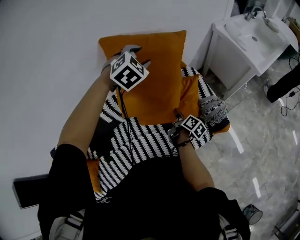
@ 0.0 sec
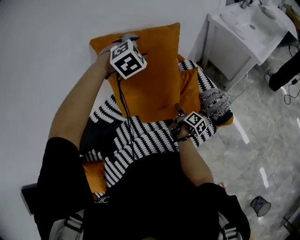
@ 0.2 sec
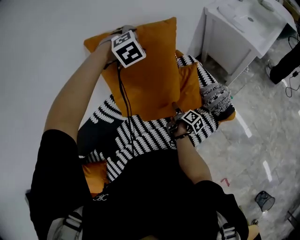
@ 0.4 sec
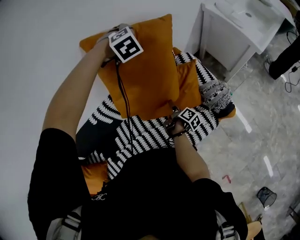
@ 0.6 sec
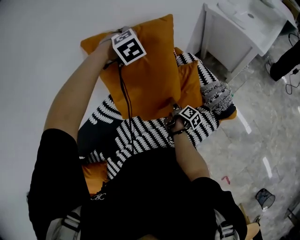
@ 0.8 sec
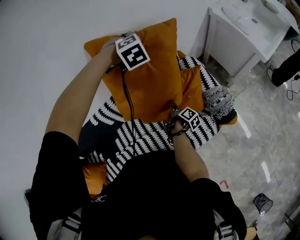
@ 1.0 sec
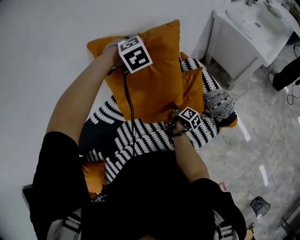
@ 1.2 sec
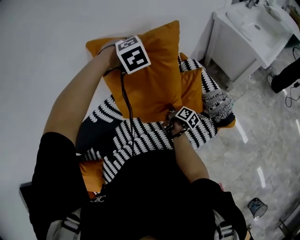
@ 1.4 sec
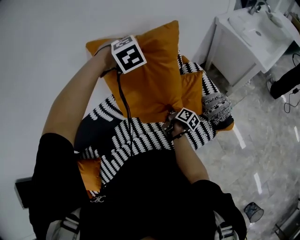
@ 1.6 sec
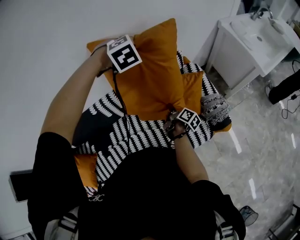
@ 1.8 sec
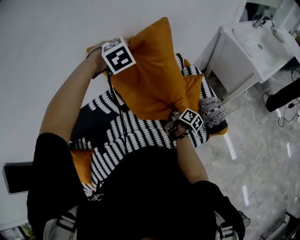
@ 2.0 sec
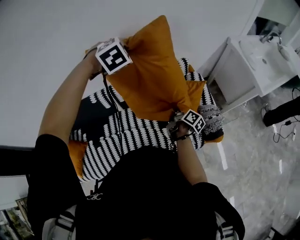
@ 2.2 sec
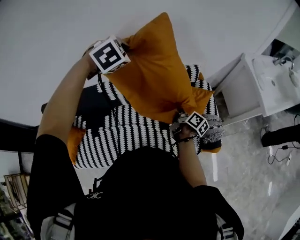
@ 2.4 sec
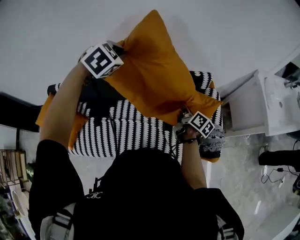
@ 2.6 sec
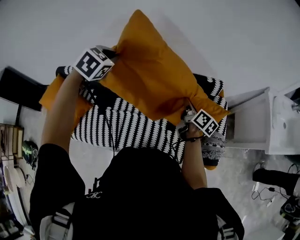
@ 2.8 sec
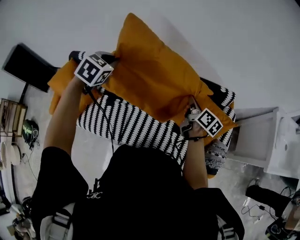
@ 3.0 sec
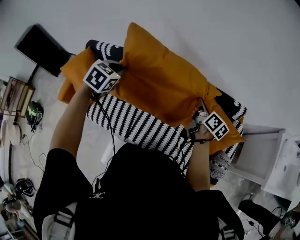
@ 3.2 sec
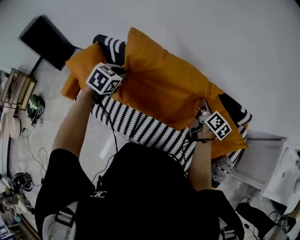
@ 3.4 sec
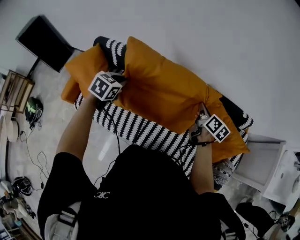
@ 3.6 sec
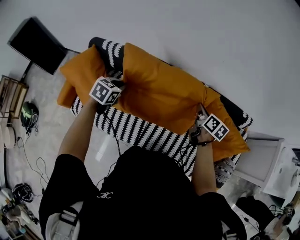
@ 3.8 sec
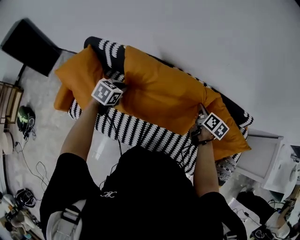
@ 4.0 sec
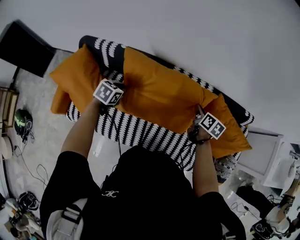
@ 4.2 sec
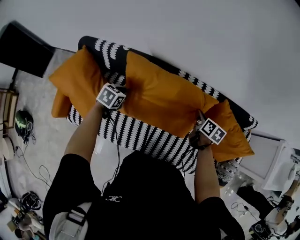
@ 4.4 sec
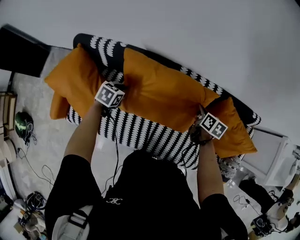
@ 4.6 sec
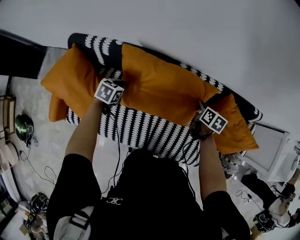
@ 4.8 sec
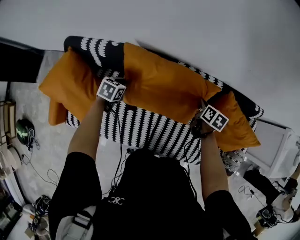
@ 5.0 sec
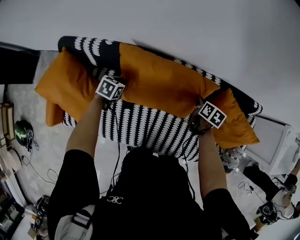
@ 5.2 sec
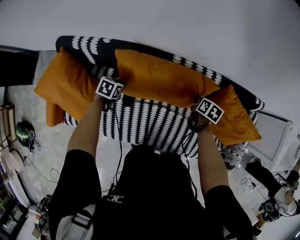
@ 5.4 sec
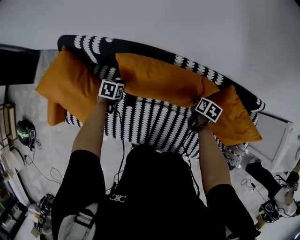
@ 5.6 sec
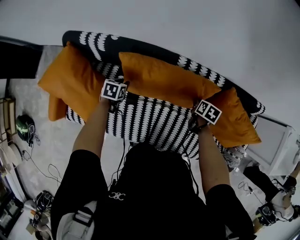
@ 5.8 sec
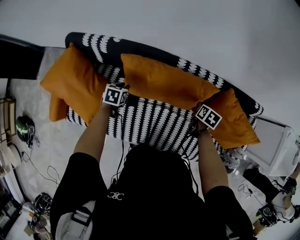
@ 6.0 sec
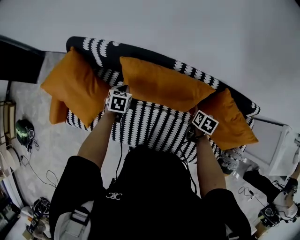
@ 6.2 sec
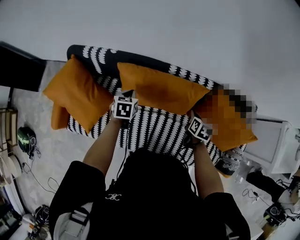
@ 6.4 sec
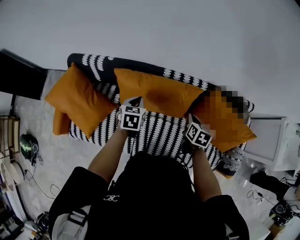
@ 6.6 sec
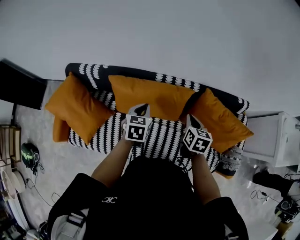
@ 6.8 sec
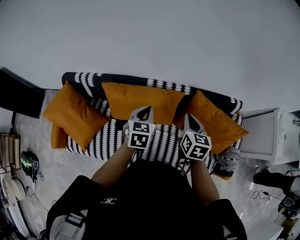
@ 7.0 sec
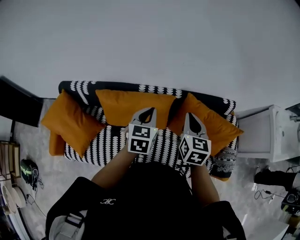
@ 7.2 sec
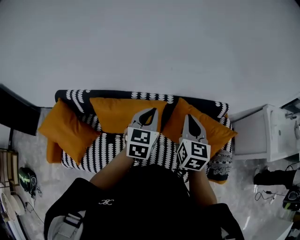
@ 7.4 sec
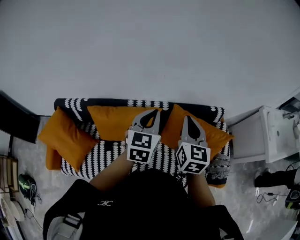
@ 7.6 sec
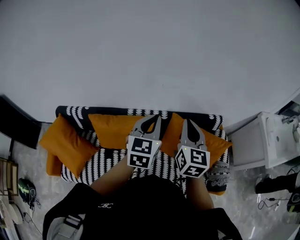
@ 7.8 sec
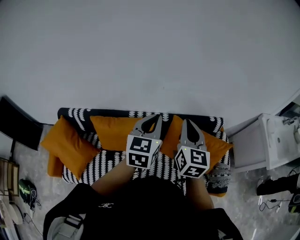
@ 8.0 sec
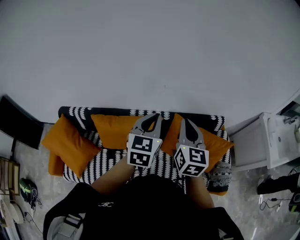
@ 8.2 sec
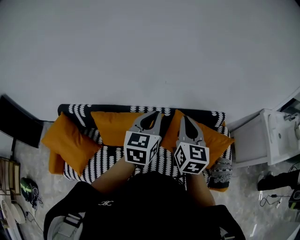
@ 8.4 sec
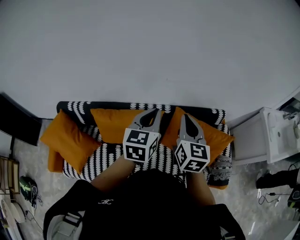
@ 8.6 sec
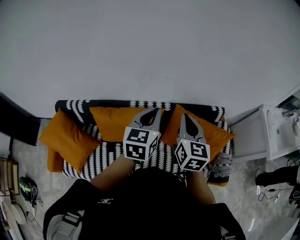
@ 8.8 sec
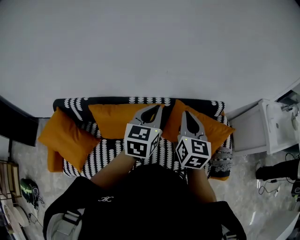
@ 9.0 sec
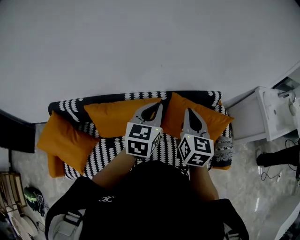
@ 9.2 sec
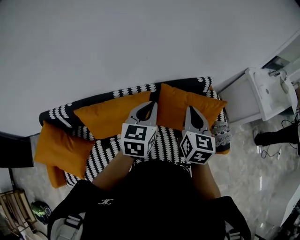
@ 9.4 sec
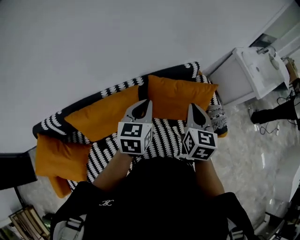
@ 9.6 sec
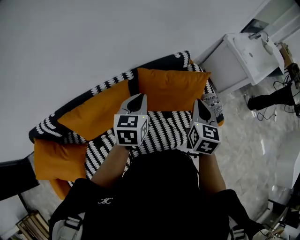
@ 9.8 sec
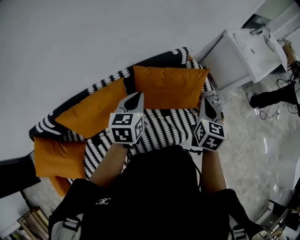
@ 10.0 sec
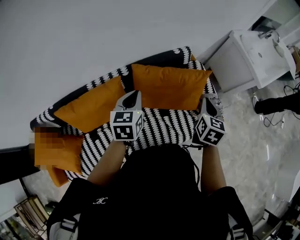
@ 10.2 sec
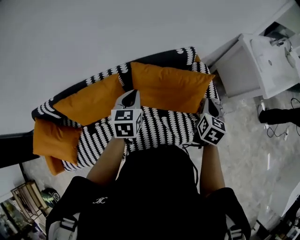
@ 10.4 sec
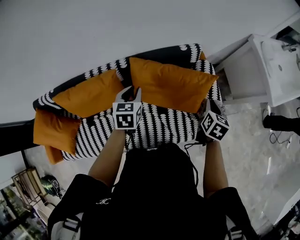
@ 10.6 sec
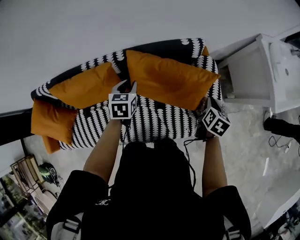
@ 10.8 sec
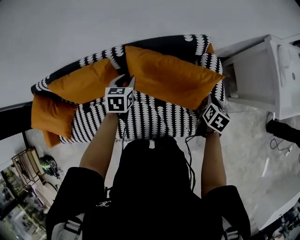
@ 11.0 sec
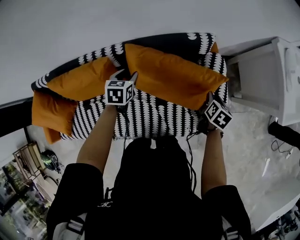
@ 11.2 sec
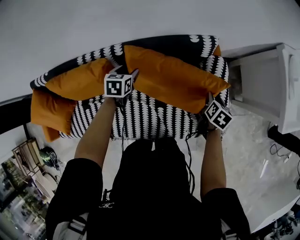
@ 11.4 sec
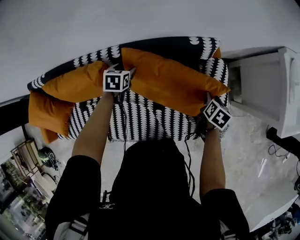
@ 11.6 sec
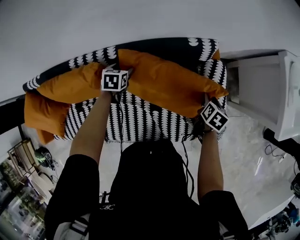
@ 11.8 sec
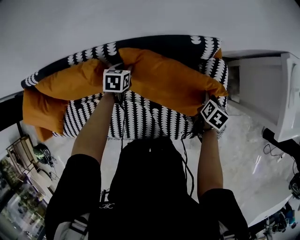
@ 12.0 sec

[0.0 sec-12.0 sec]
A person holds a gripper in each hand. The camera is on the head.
0.0 sec to 1.6 sec: The left gripper turns by some 20 degrees, and closes up. The right gripper travels to the left and downward by some 5 cm, and closes up.
1.6 sec to 3.0 sec: The left gripper changes place by roughly 50 cm, and rotates around the line of its fingers by about 70 degrees, counterclockwise from behind, while the right gripper moves upward, approximately 20 cm, and swivels roughly 60 degrees.
3.0 sec to 4.4 sec: The right gripper moves to the left, downward and forward, approximately 30 cm, and swivels some 30 degrees. The left gripper goes about 40 cm downward and to the left, and swivels roughly 30 degrees.
4.4 sec to 6.0 sec: Both grippers move downward, approximately 10 cm. The right gripper changes its angle by approximately 20 degrees, and opens, then closes again.
6.0 sec to 7.6 sec: The right gripper travels upward by some 40 cm, and tips its fingers upward by approximately 50 degrees, while the left gripper travels to the right and upward by roughly 60 cm, and angles its fingers upward, by roughly 40 degrees.
7.6 sec to 9.0 sec: The grippers stay close to where they were, moving slightly.
9.0 sec to 10.4 sec: The right gripper moves about 40 cm, and rotates some 40 degrees; the left gripper changes place by approximately 25 cm.
10.4 sec to 12.0 sec: The two grippers go about 30 cm downward and forward. The left gripper turns by approximately 30 degrees, and opens and closes again. The right gripper turns by about 30 degrees, and opens up.

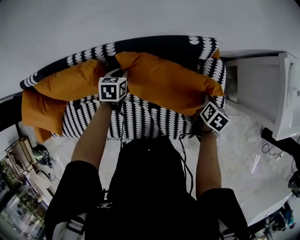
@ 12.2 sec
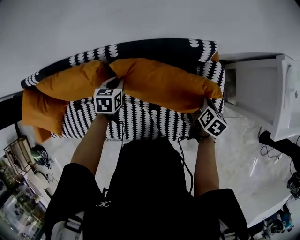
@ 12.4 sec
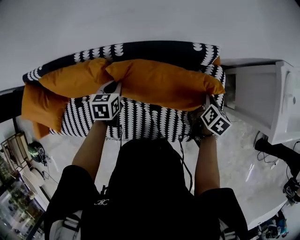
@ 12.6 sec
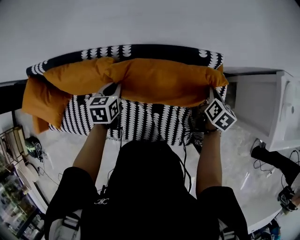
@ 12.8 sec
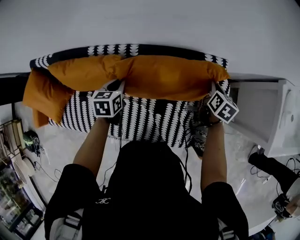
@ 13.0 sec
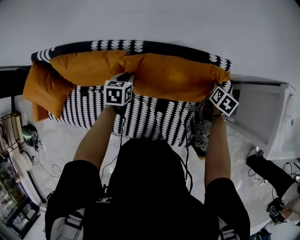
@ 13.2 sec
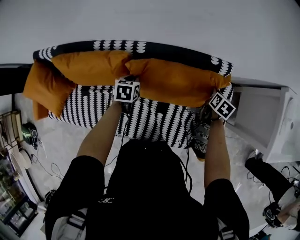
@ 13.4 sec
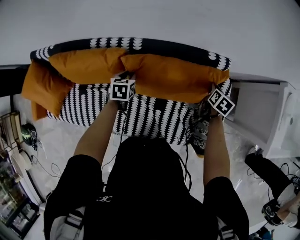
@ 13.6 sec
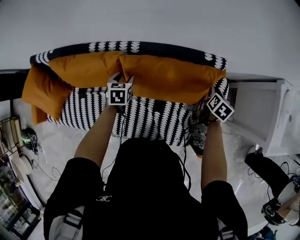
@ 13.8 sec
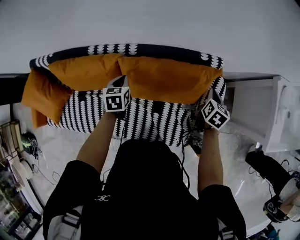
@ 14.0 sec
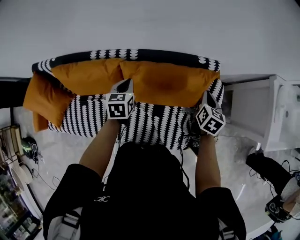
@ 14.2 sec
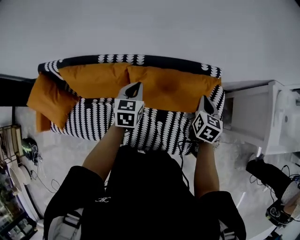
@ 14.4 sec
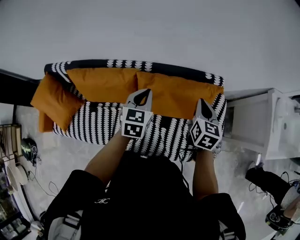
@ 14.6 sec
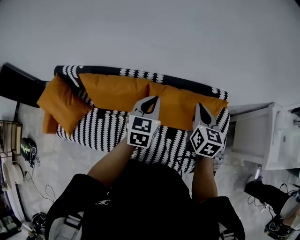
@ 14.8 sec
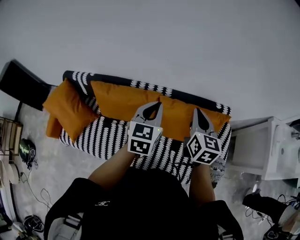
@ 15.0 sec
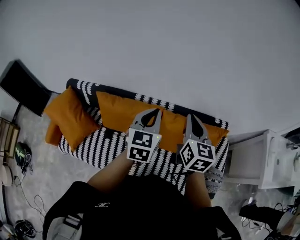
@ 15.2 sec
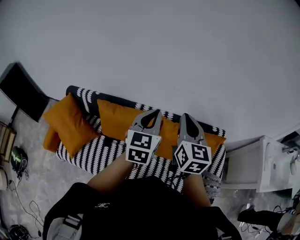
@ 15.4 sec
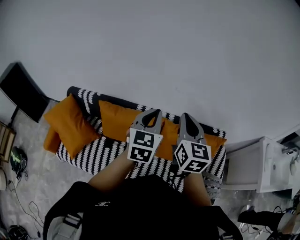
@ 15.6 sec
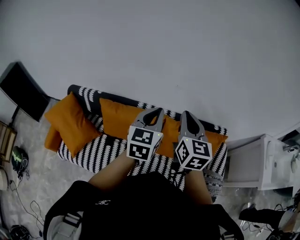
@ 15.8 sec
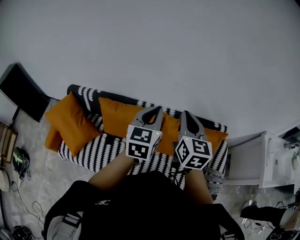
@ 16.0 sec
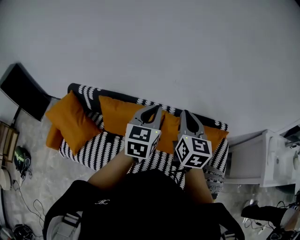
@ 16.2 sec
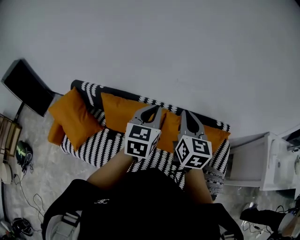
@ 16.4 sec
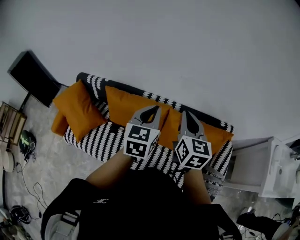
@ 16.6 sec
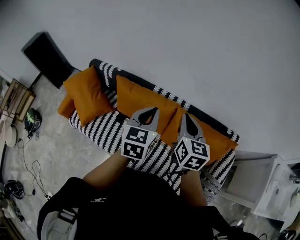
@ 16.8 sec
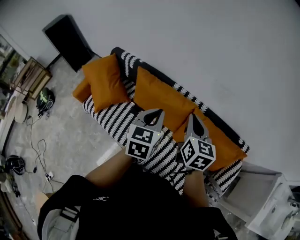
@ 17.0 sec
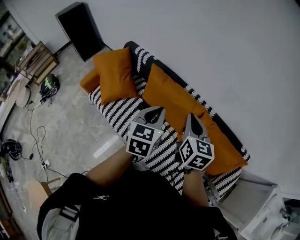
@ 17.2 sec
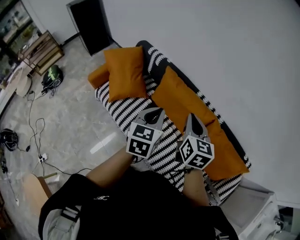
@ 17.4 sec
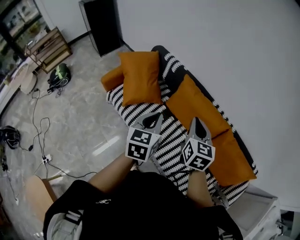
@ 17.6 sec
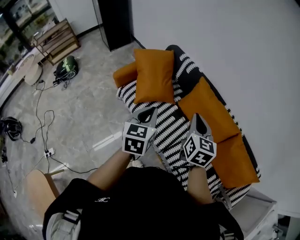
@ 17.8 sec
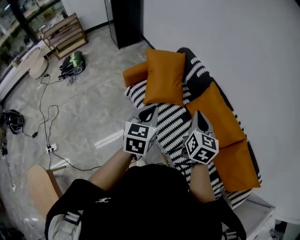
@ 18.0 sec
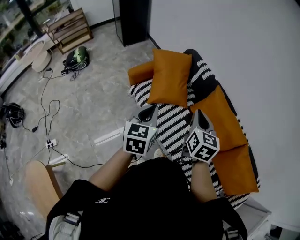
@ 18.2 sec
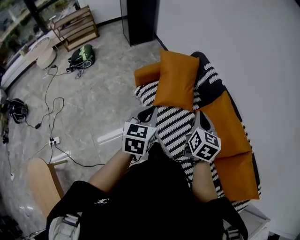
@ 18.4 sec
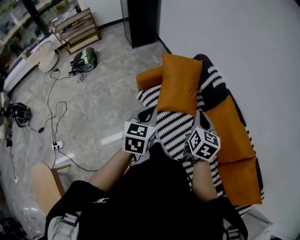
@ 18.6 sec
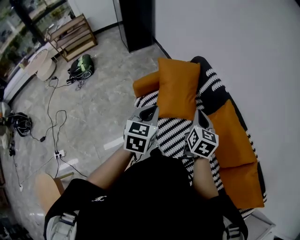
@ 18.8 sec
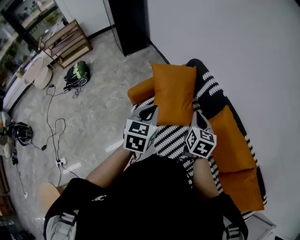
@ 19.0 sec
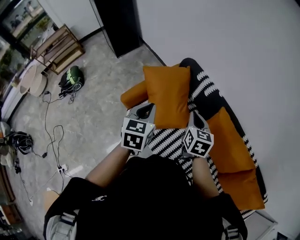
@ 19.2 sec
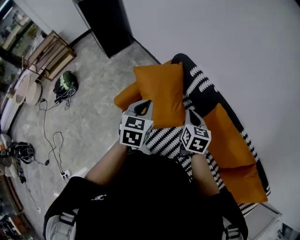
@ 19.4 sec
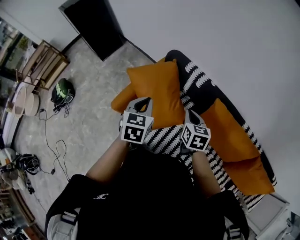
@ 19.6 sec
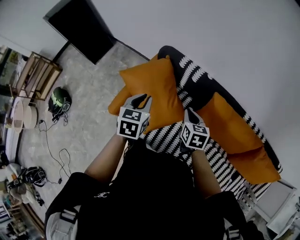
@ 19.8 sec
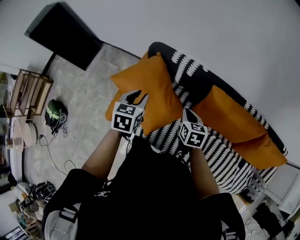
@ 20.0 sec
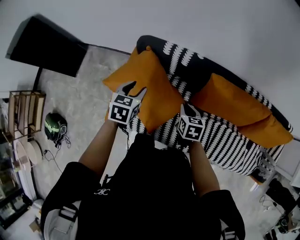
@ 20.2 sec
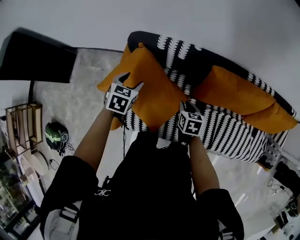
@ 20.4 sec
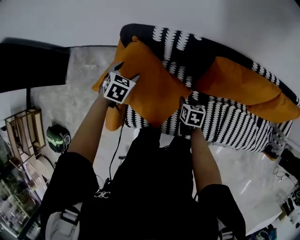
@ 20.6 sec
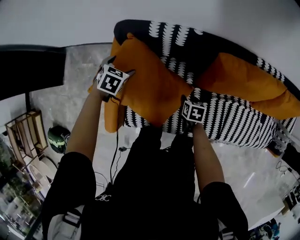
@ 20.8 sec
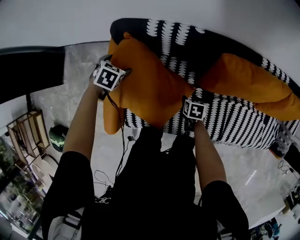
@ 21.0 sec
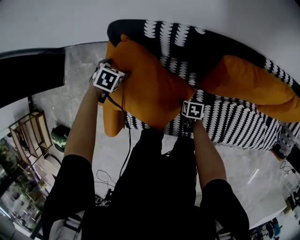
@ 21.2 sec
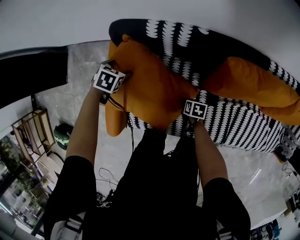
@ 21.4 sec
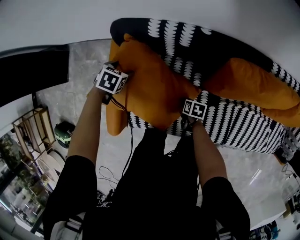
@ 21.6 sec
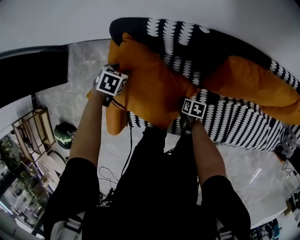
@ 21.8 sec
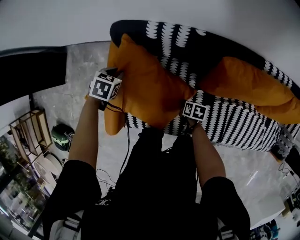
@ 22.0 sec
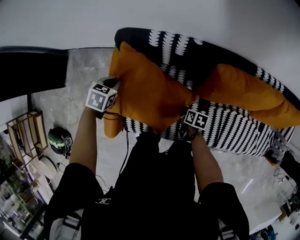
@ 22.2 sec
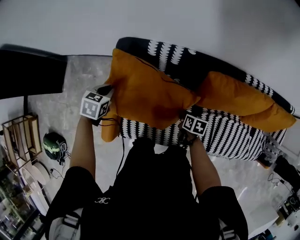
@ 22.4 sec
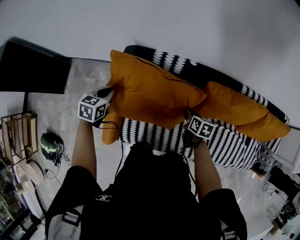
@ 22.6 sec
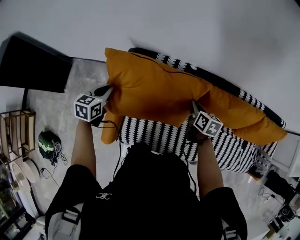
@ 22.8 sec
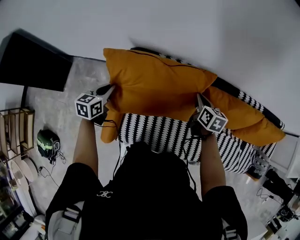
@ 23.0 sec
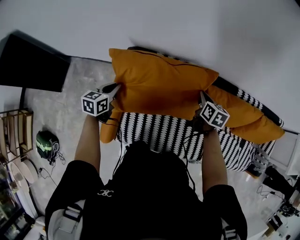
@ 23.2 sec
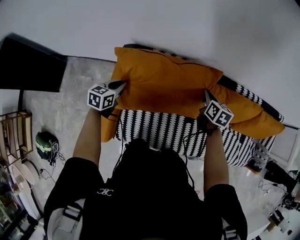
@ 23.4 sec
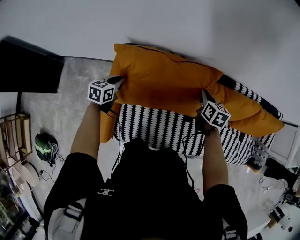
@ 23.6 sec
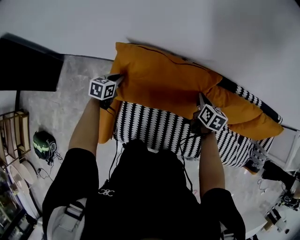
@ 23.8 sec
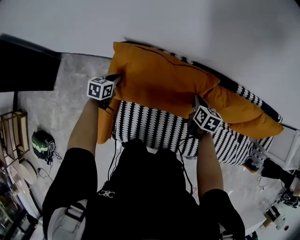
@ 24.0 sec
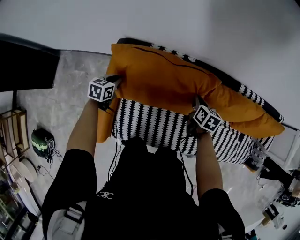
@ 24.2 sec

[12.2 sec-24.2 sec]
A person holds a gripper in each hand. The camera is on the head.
12.2 sec to 13.8 sec: The left gripper moves to the left and backward, about 10 cm, moves approximately 10 cm upward and comes back, and opens up. Meanwhile the right gripper moves forward, roughly 10 cm, and opens up.
13.8 sec to 15.2 sec: The right gripper heads to the left and upward, covering about 50 cm, tilts its fingers some 40 degrees upward, and closes its fingers. Meanwhile the left gripper heads upward, covering approximately 40 cm, angles its fingers upward, by some 40 degrees, and closes its fingers.
16.6 sec to 18.2 sec: The pair of grippers is taken approximately 60 cm. The left gripper rotates roughly 40 degrees. Meanwhile the right gripper turns by approximately 40 degrees.
18.2 sec to 19.8 sec: The right gripper goes approximately 35 cm forward and downward, and swivels some 20 degrees. Meanwhile the left gripper goes about 40 cm forward, and swivels roughly 30 degrees.
19.8 sec to 21.2 sec: Both grippers move downward, roughly 30 cm. The left gripper angles its fingers downward, by about 40 degrees, and opens, while the right gripper points its fingers some 40 degrees further downward, and opens its fingers.
21.2 sec to 22.6 sec: Both grippers travel together upward, roughly 20 cm. The left gripper changes its angle by approximately 30 degrees, and closes, while the right gripper swivels about 30 degrees, and closes up.
22.6 sec to 24.2 sec: The right gripper goes roughly 10 cm forward, and travels upward and back again, roughly 10 cm each way, while the left gripper is displaced downward and forward by some 15 cm.
